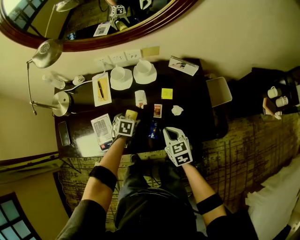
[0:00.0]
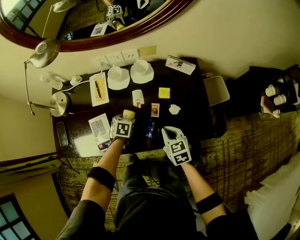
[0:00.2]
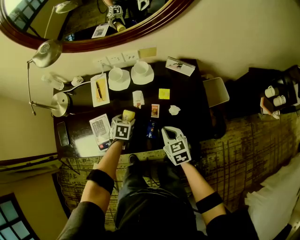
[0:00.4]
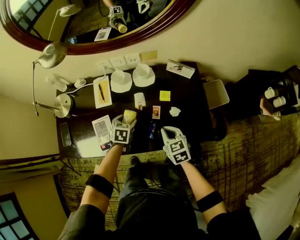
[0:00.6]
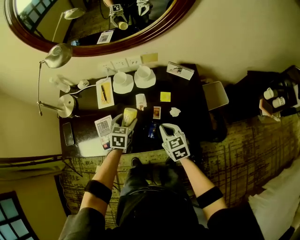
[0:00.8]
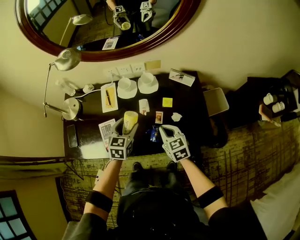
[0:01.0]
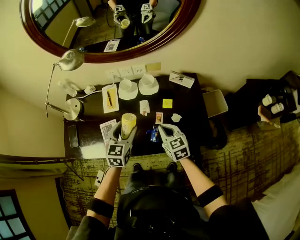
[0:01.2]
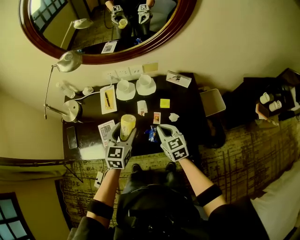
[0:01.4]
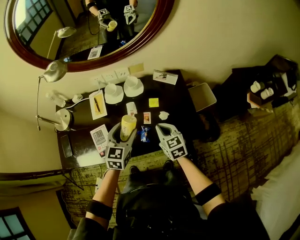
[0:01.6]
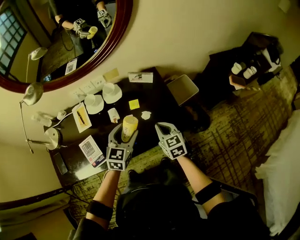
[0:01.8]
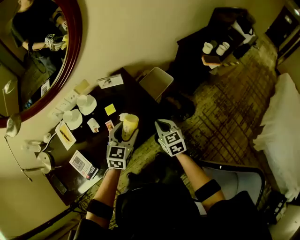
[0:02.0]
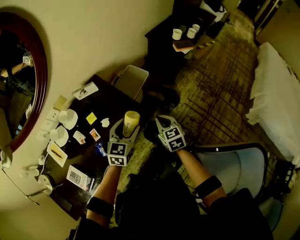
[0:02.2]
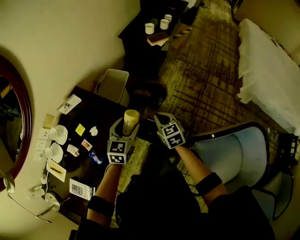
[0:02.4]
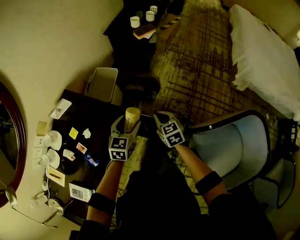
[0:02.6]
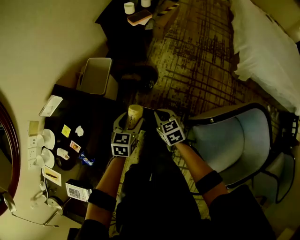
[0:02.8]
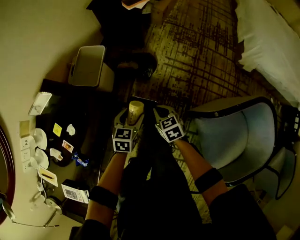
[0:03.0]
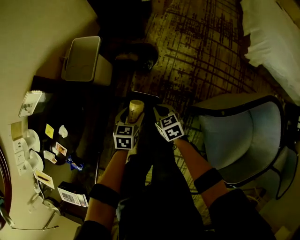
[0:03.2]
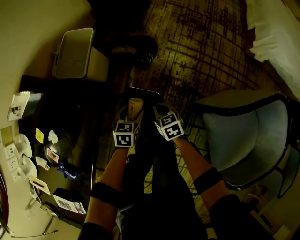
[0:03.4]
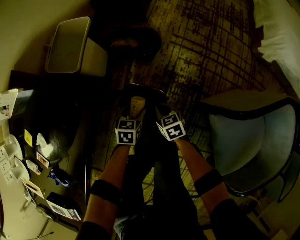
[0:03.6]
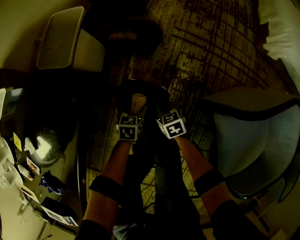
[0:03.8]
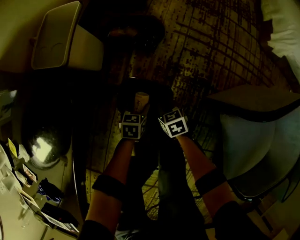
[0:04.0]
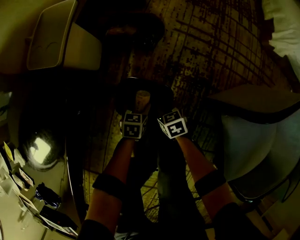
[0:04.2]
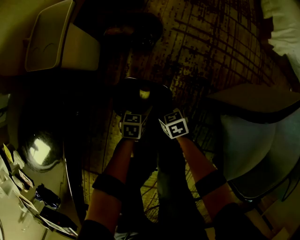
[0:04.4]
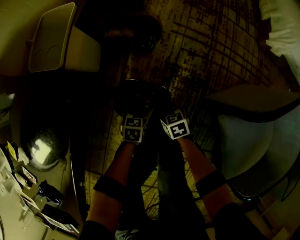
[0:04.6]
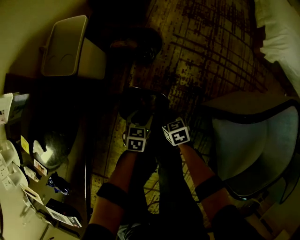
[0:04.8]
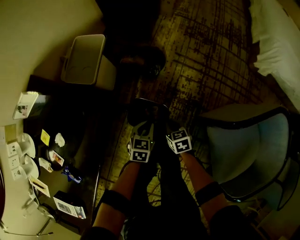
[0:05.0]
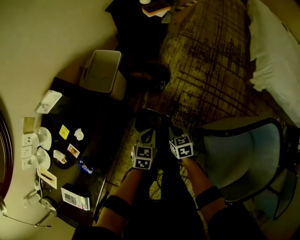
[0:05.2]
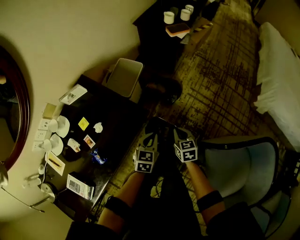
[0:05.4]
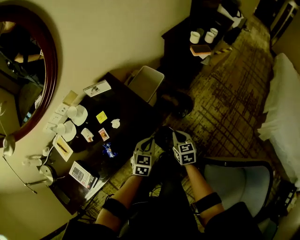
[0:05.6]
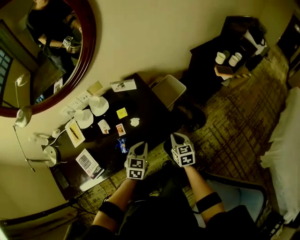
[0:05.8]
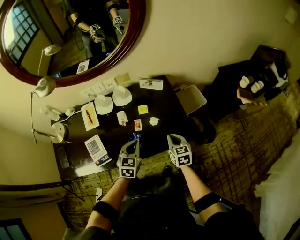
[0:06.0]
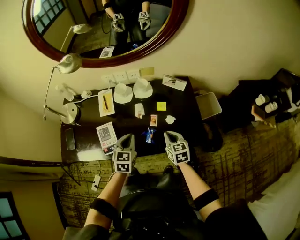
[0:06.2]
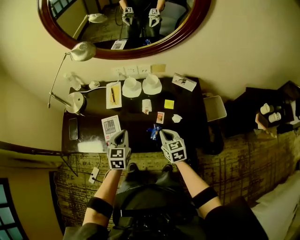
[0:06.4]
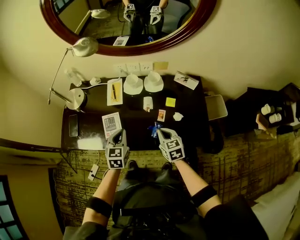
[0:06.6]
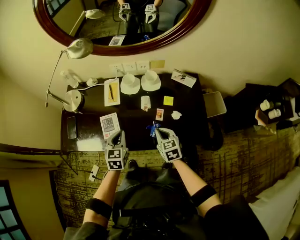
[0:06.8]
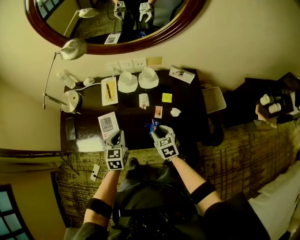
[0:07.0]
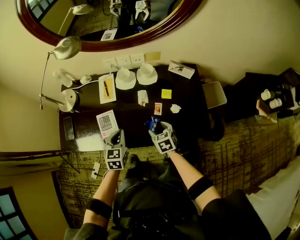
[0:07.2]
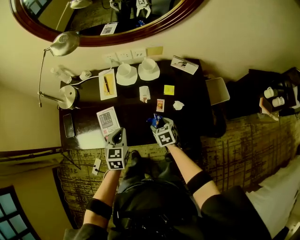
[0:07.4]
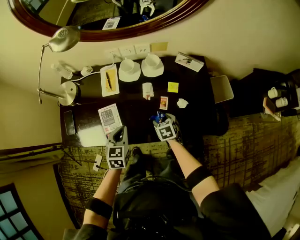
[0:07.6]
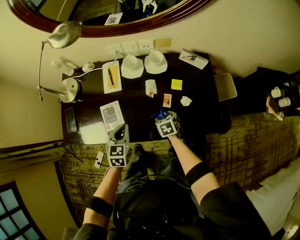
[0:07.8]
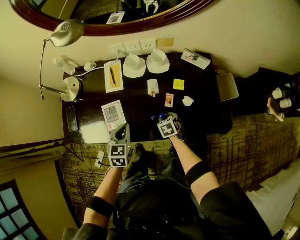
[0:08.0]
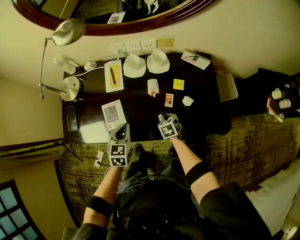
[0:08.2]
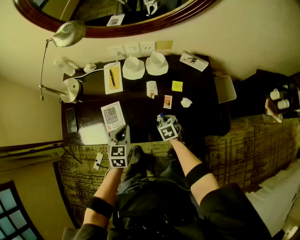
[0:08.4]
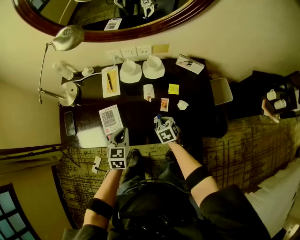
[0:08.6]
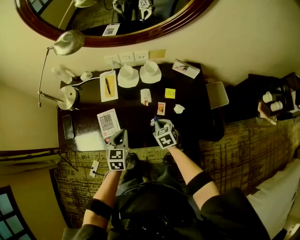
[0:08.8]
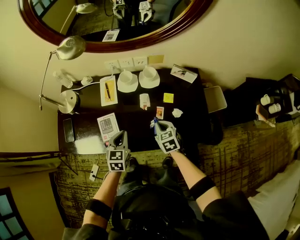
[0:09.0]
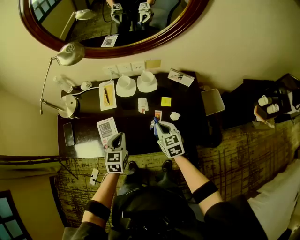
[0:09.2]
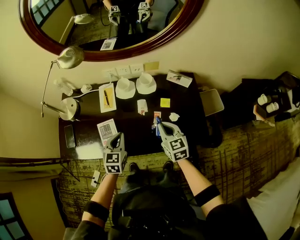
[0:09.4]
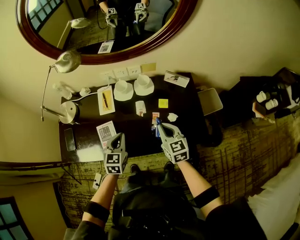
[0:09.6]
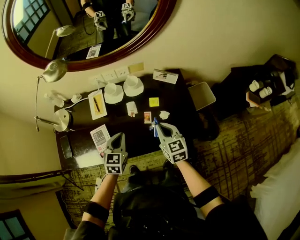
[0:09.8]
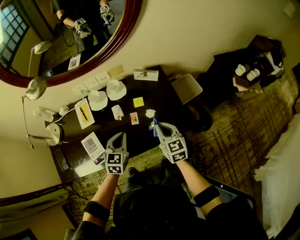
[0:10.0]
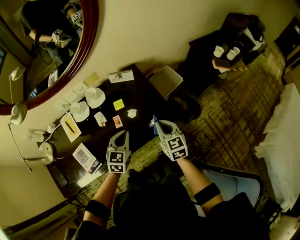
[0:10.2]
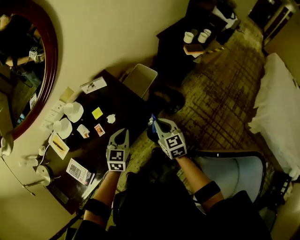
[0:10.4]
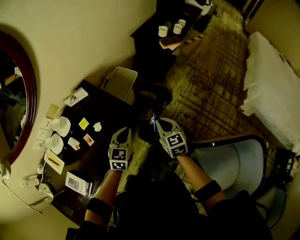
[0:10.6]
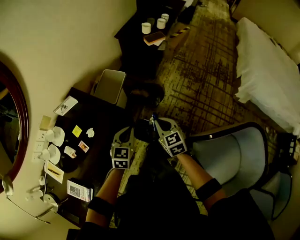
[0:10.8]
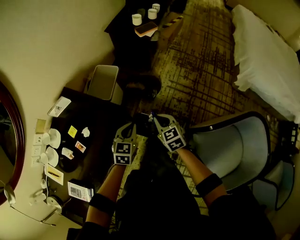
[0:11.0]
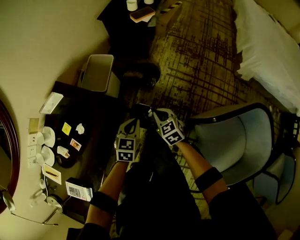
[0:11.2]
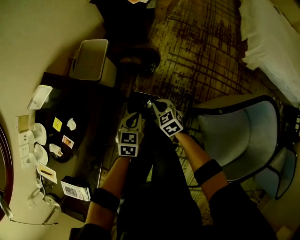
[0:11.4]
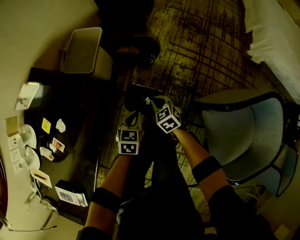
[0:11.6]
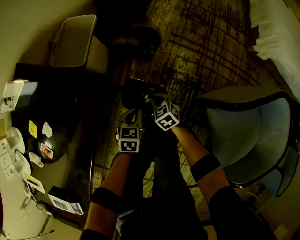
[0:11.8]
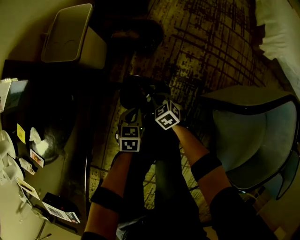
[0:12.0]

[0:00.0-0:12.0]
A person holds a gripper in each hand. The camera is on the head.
0:00.0 to 0:01.6: The left gripper travels upward by about 25 cm, and points its fingers approximately 40 degrees further upward. Meanwhile the right gripper heads upward, covering approximately 10 cm.
0:01.6 to 0:03.0: The two grippers travel together, approximately 50 cm. The right gripper swivels roughly 60 degrees, while the left gripper turns by about 60 degrees.
0:03.0 to 0:04.4: Both grippers travel together downward, approximately 40 cm.
0:04.4 to 0:06.0: Both grippers move upward, some 60 cm. The right gripper swivels some 50 degrees, while the left gripper rotates some 60 degrees, and closes.
0:06.0 to 0:07.6: The left gripper is displaced to the left by about 20 cm, and swivels roughly 20 degrees. Meanwhile the right gripper moves to the left, downward and forward, approximately 25 cm, swivels roughly 30 degrees, and opens.
0:07.6 to 0:09.0: The right gripper moves upward, some 10 cm, and closes its fingers.
0:09.0 to 0:10.4: The left gripper changes place by some 35 cm, and changes its angle by roughly 50 degrees. The right gripper shifts by some 35 cm, and rotates some 40 degrees.
0:10.4 to 0:12.0: The left gripper travels downward and to the right by about 50 cm, and rotates about 40 degrees. The right gripper is displaced downward by roughly 60 cm, and tilts its fingers some 30 degrees downward.

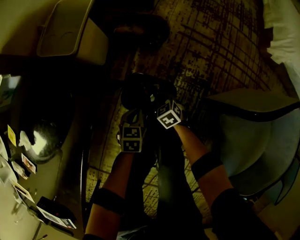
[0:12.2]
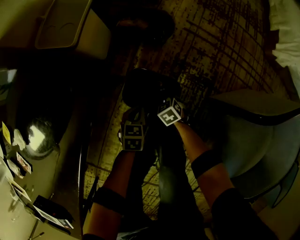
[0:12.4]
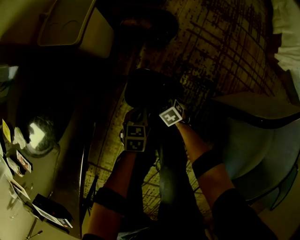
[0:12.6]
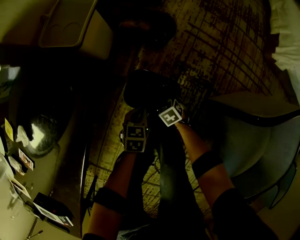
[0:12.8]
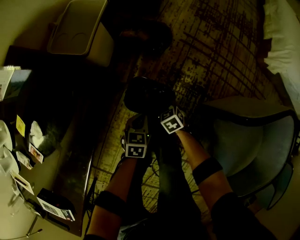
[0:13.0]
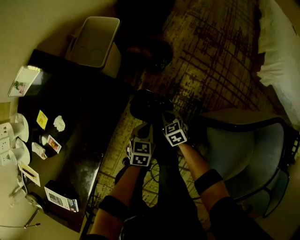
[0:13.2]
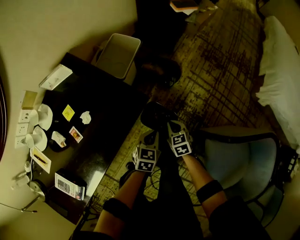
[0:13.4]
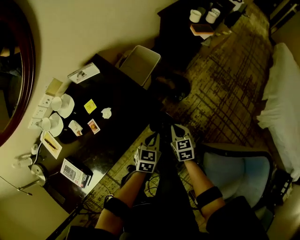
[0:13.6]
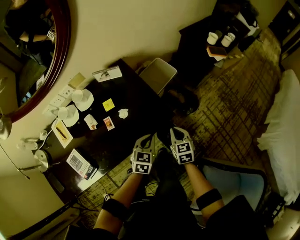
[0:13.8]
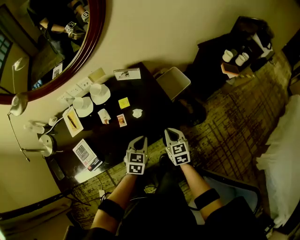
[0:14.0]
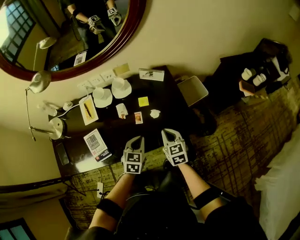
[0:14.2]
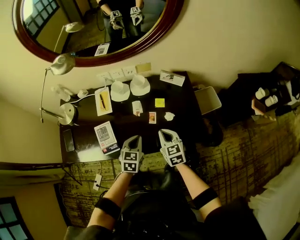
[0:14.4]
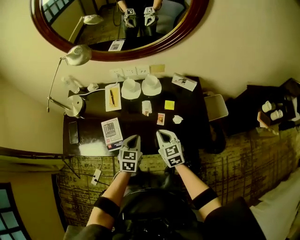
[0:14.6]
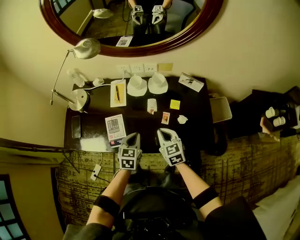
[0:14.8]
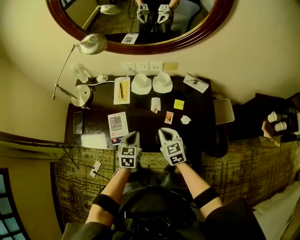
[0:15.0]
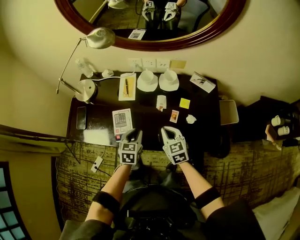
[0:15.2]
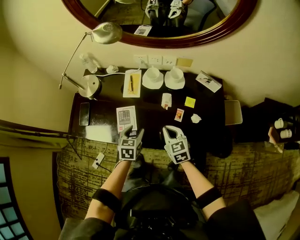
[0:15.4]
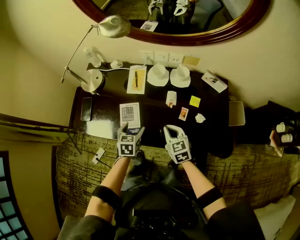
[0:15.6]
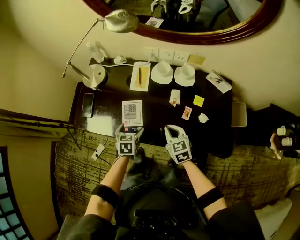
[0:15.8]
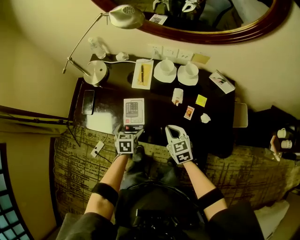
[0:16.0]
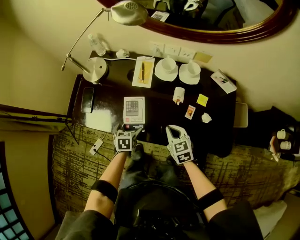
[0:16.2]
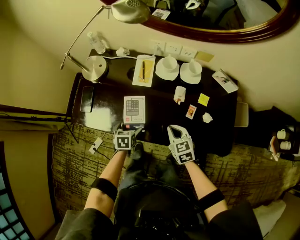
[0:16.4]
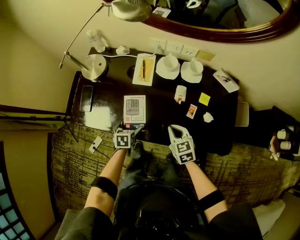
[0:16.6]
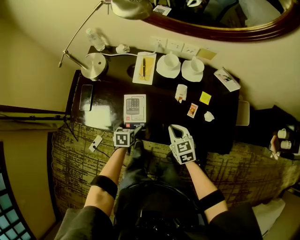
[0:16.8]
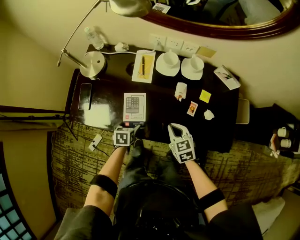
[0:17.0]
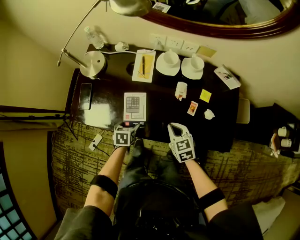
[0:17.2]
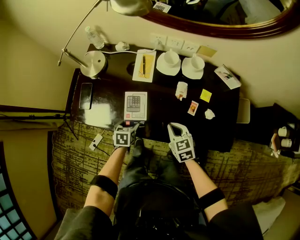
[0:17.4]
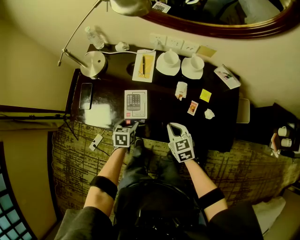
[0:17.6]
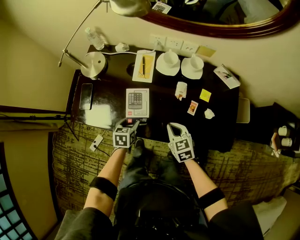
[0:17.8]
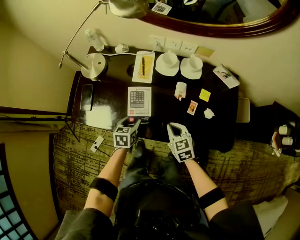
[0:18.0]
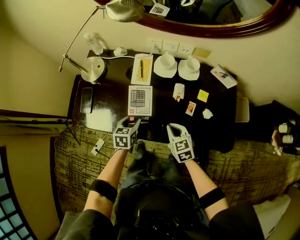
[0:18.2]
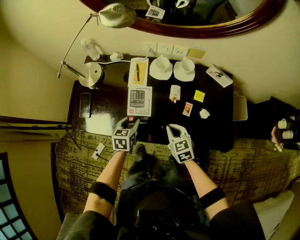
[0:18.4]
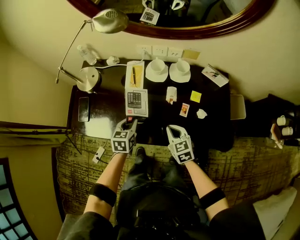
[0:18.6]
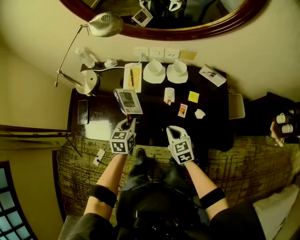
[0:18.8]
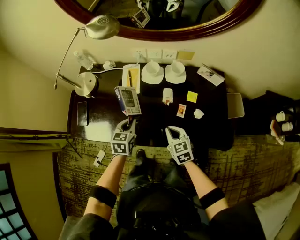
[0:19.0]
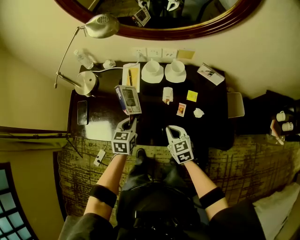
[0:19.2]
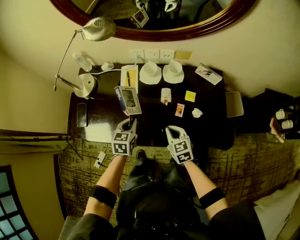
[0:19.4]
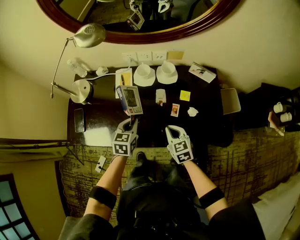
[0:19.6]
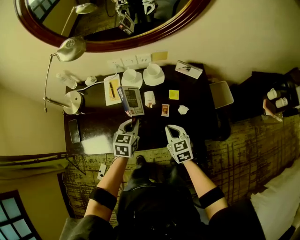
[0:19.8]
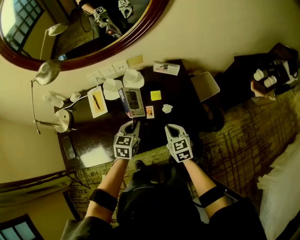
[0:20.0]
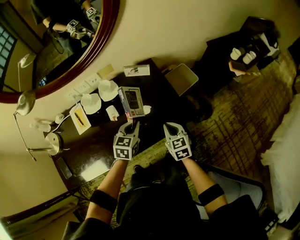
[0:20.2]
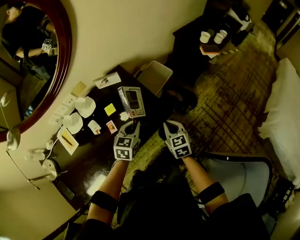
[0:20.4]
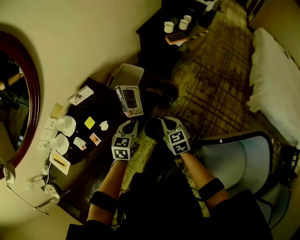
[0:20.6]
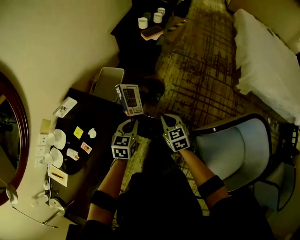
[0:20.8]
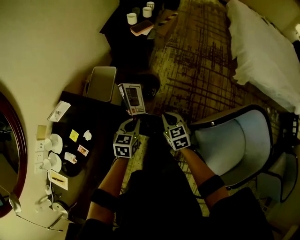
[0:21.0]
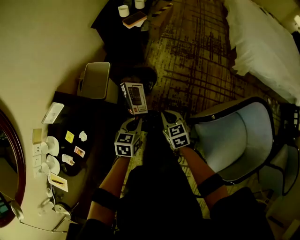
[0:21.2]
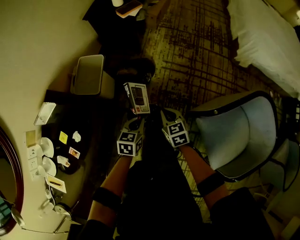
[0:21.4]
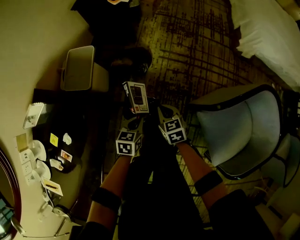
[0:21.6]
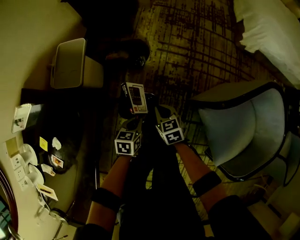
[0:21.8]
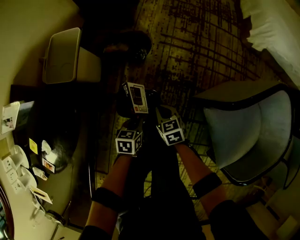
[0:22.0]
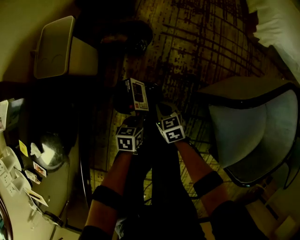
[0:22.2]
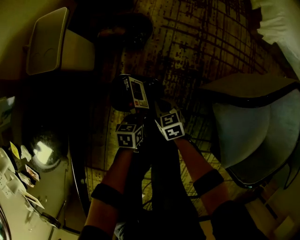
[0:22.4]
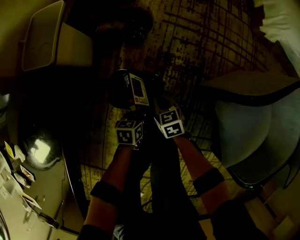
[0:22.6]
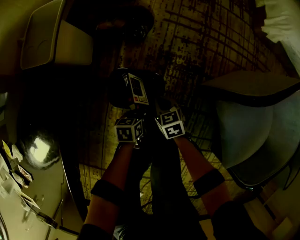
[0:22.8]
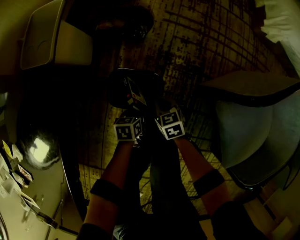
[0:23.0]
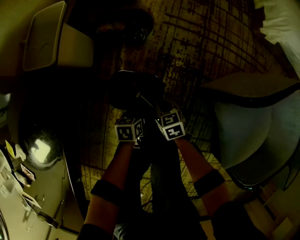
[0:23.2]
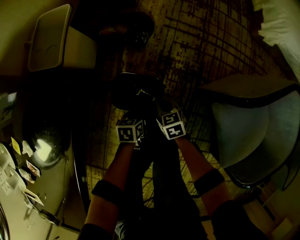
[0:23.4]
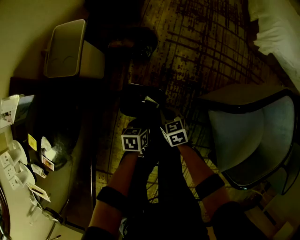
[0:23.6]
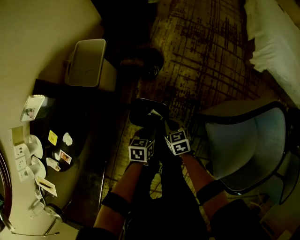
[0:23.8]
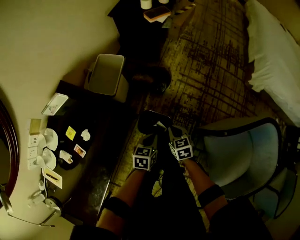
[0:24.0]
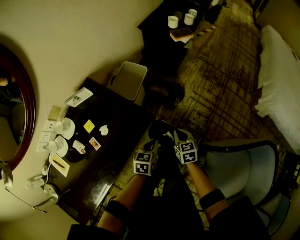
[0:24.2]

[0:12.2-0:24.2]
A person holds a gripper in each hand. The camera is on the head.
0:12.2 to 0:13.8: Both grippers travel together upward, some 50 cm. The left gripper swivels approximately 30 degrees; the right gripper swivels roughly 30 degrees, and opens, then closes again.
0:13.8 to 0:15.2: The left gripper changes place by some 40 cm, and changes its angle by some 50 degrees. The right gripper ends up approximately 40 cm from where it was, and changes its angle by some 50 degrees.
0:15.2 to 0:16.6: The right gripper moves downward and to the left, roughly 10 cm, while the left gripper travels downward and to the left by approximately 20 cm, changes its angle by roughly 30 degrees, and opens.
0:16.6 to 0:18.2: The left gripper is displaced upward by approximately 5 cm, and closes its fingers.
0:18.2 to 0:19.8: The right gripper shifts roughly 10 cm to the right; the left gripper shifts approximately 20 cm to the right and upward, rotates about 20 degrees, and closes its fingers.
0:19.8 to 0:21.2: The pair of grippers is taken about 50 cm. The left gripper rotates about 70 degrees. Meanwhile the right gripper turns by some 70 degrees.
0:21.2 to 0:22.6: The grippers both shift downward by about 50 cm. The left gripper turns by some 30 degrees.
0:22.6 to 0:24.2: The two grippers go about 40 cm upward. The left gripper rotates approximately 30 degrees.
